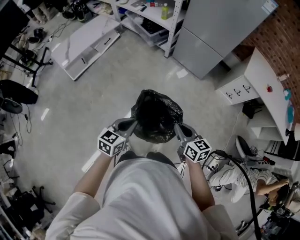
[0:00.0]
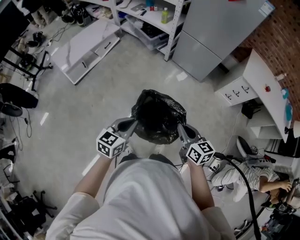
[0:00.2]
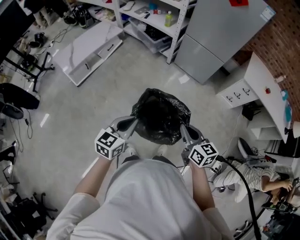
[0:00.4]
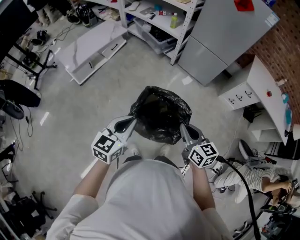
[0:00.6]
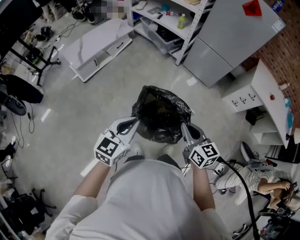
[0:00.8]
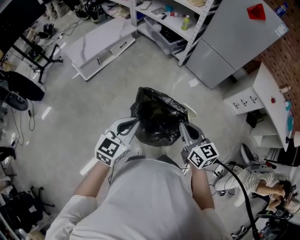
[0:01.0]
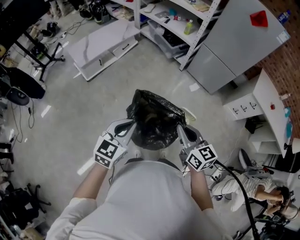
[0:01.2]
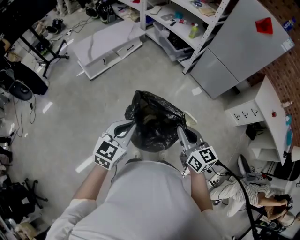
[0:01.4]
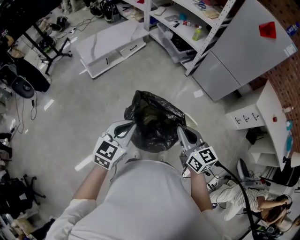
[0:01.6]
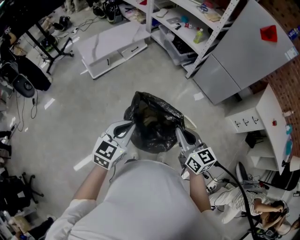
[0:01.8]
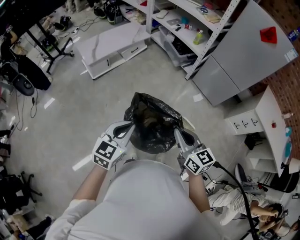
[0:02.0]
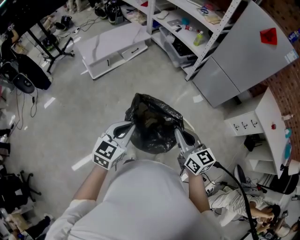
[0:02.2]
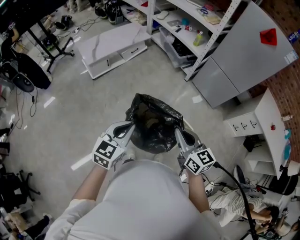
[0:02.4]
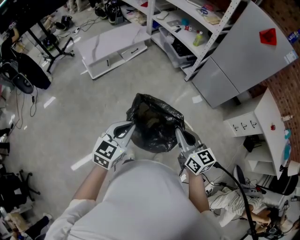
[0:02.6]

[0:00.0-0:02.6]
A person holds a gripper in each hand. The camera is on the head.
0:00.0 to 0:01.2: Both grippers travel together to the left and upward, roughly 25 cm.
0:01.2 to 0:02.6: The grippers stay close to where they were, moving slightly.

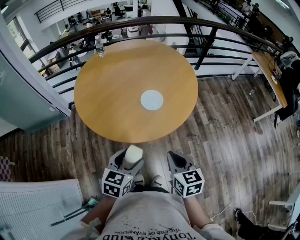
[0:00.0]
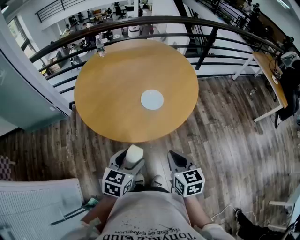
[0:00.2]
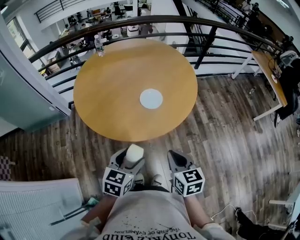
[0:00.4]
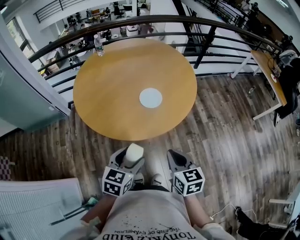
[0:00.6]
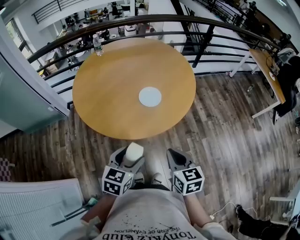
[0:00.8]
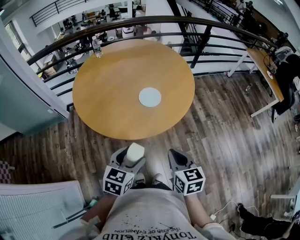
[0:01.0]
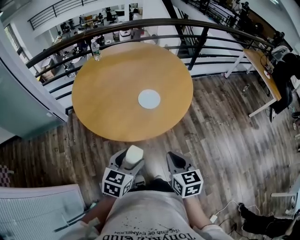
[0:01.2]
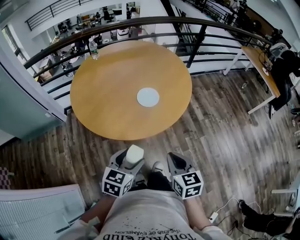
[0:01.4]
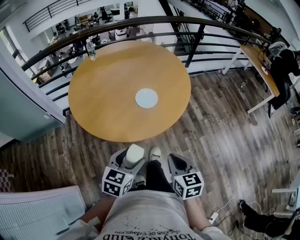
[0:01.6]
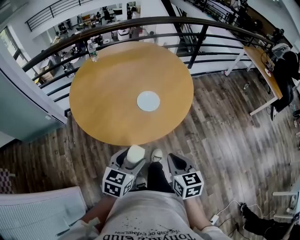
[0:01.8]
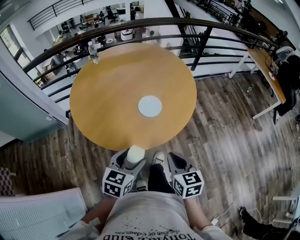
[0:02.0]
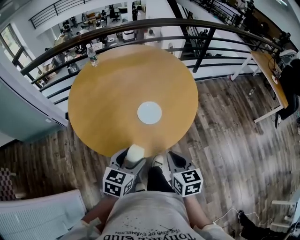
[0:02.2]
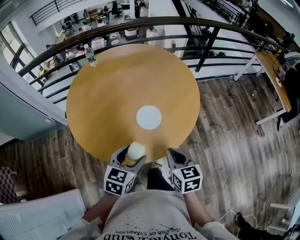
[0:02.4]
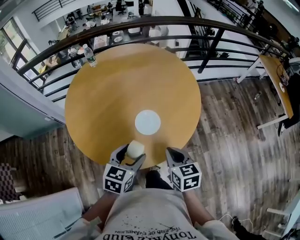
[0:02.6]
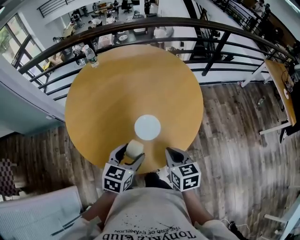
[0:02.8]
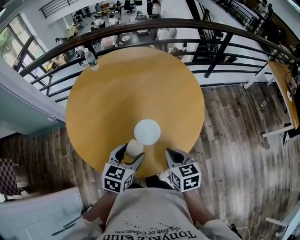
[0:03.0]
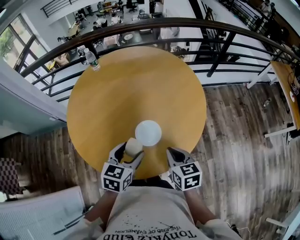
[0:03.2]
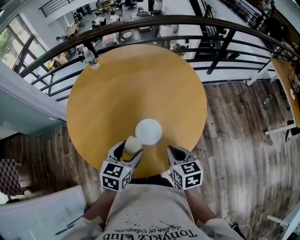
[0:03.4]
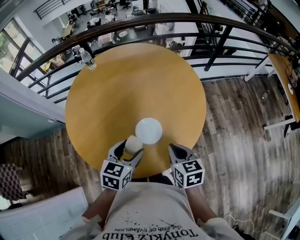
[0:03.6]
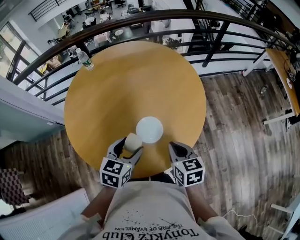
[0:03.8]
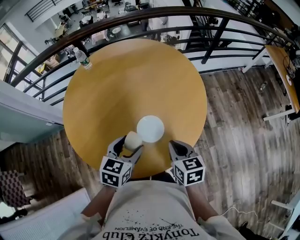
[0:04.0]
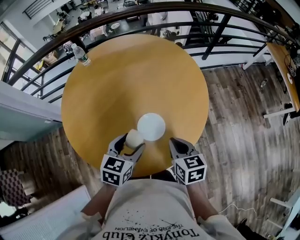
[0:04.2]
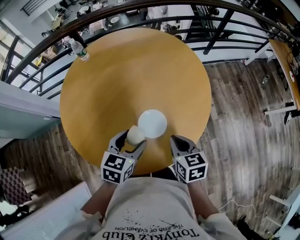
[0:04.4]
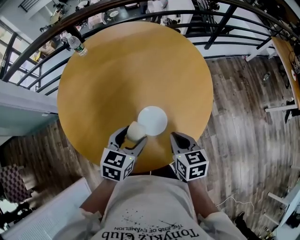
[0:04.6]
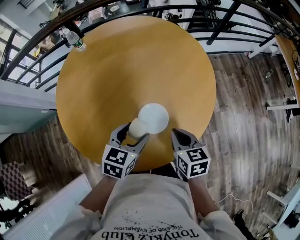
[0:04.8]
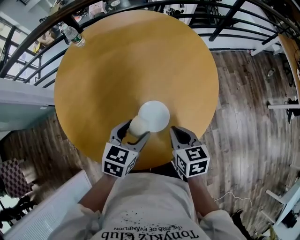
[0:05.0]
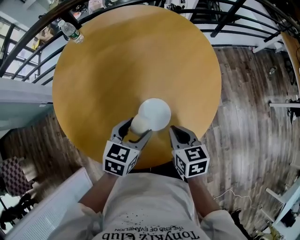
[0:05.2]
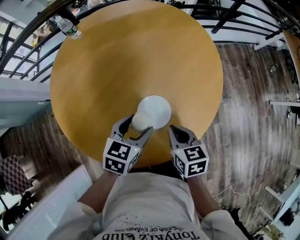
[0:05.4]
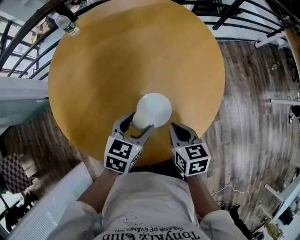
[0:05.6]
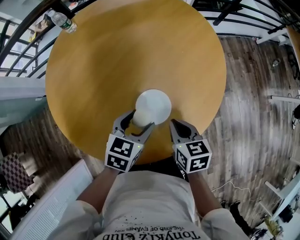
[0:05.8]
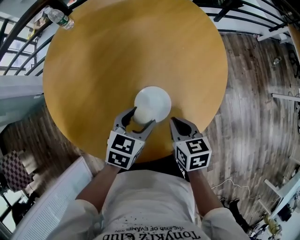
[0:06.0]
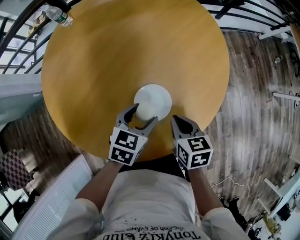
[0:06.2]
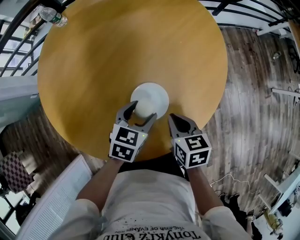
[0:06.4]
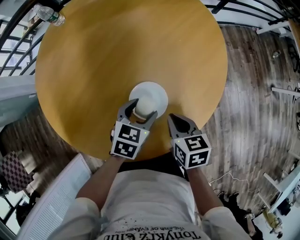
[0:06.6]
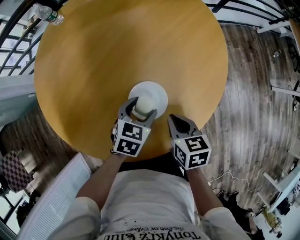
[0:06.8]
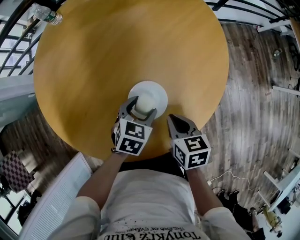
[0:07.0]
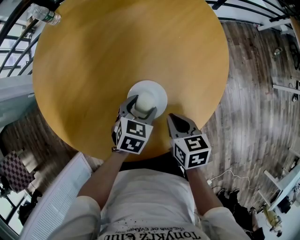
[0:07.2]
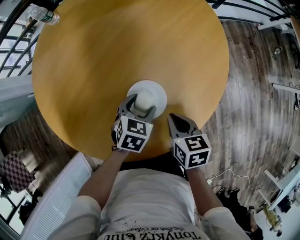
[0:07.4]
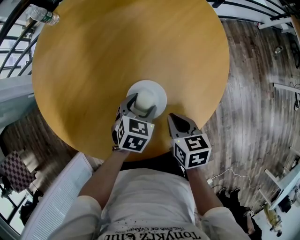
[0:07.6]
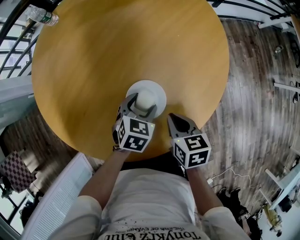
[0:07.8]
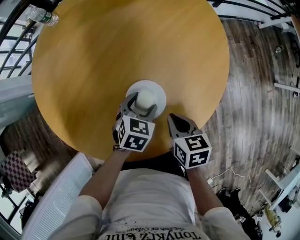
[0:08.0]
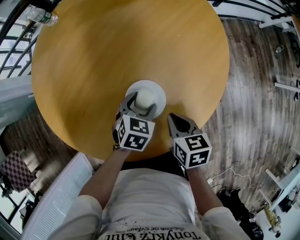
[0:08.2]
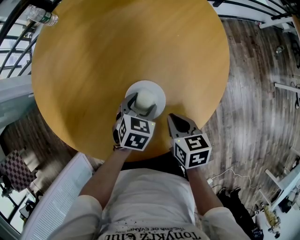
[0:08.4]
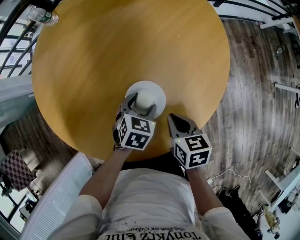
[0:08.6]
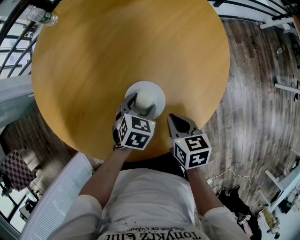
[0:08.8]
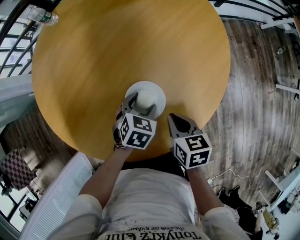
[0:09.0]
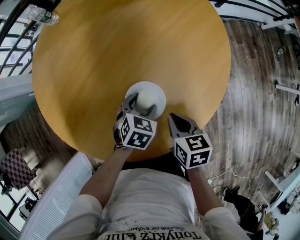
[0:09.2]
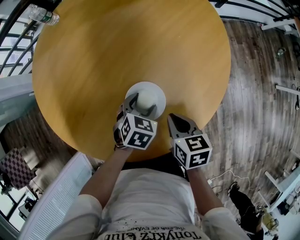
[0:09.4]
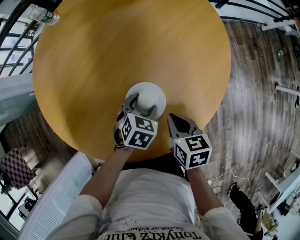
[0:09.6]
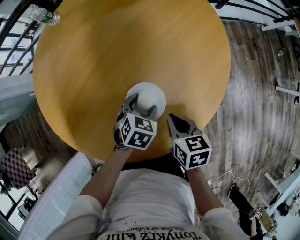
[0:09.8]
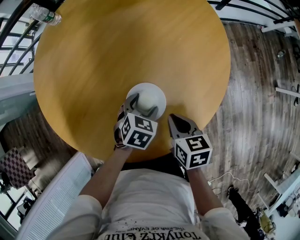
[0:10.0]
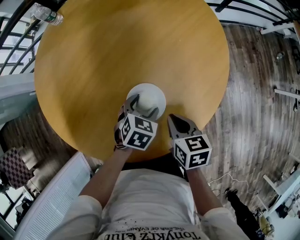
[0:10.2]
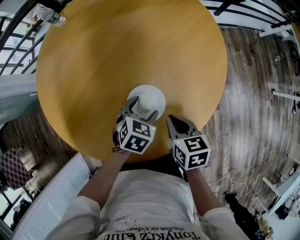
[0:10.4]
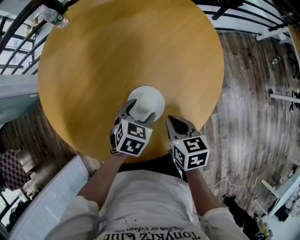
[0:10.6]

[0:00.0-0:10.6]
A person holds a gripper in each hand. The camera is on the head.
0:00.0 to 0:01.6: The grippers move only a little.
0:01.6 to 0:03.0: Both grippers travel together forward, roughly 25 cm.
0:03.0 to 0:04.6: Both grippers move forward, about 5 cm.
0:04.6 to 0:06.0: Both grippers travel together downward, roughly 10 cm.
0:06.0 to 0:07.6: The left gripper moves downward, some 10 cm.
0:07.6 to 0:09.0: The grippers move only a little.
0:09.0 to 0:10.6: The left gripper shifts by roughly 5 cm.

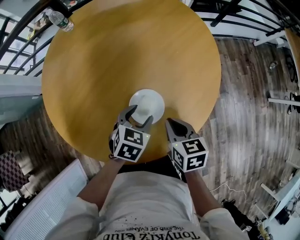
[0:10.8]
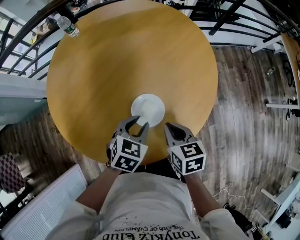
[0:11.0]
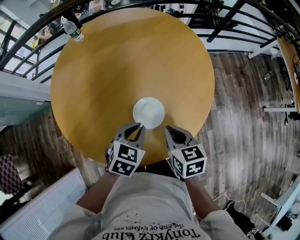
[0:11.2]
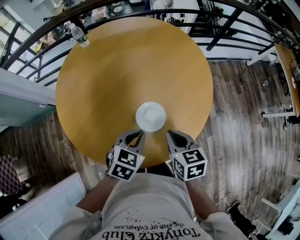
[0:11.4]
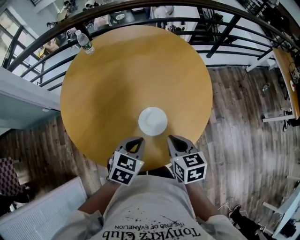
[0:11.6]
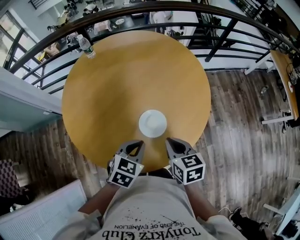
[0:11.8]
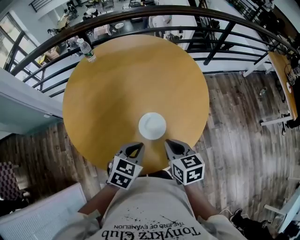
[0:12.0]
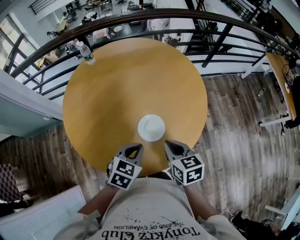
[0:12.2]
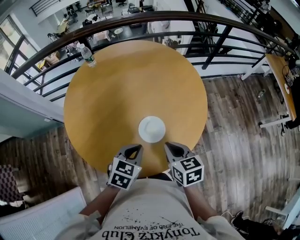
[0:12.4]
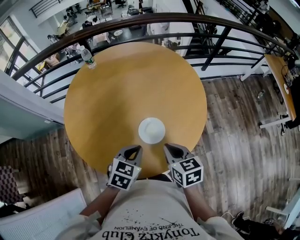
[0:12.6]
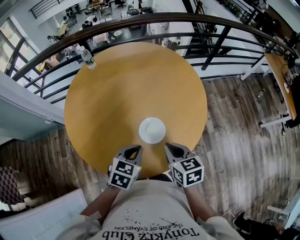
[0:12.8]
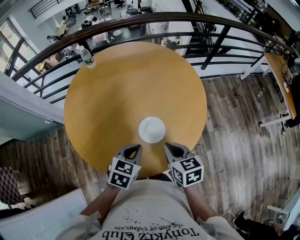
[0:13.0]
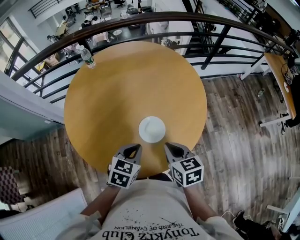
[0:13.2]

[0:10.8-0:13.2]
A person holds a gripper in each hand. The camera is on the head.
0:10.8 to 0:12.0: Both grippers travel together upward and backward, some 15 cm. The left gripper closes.
0:12.0 to 0:13.2: The grippers stay close to where they were, moving slightly.

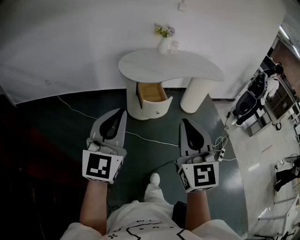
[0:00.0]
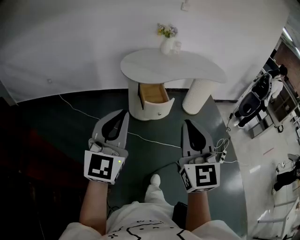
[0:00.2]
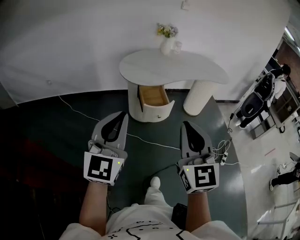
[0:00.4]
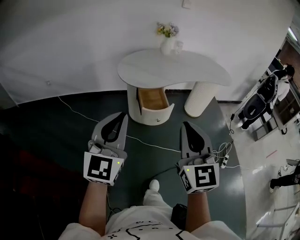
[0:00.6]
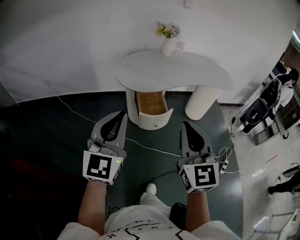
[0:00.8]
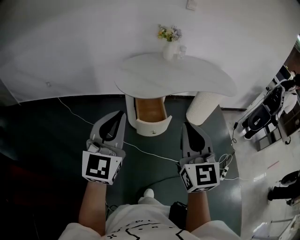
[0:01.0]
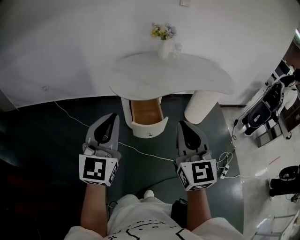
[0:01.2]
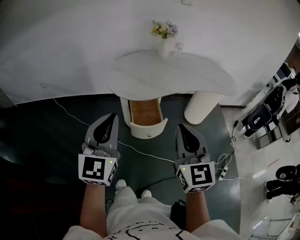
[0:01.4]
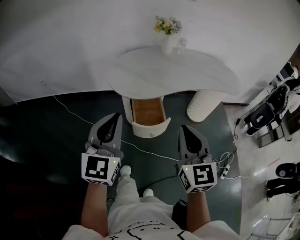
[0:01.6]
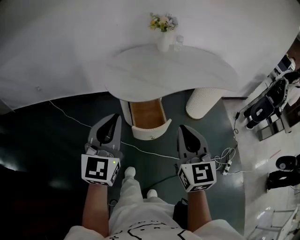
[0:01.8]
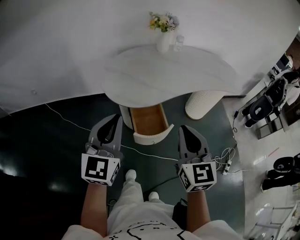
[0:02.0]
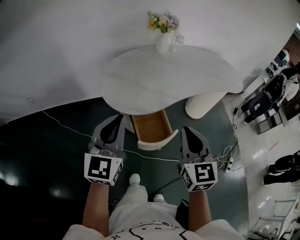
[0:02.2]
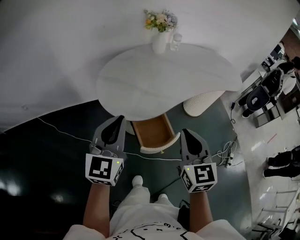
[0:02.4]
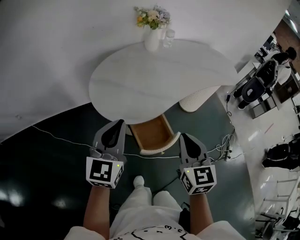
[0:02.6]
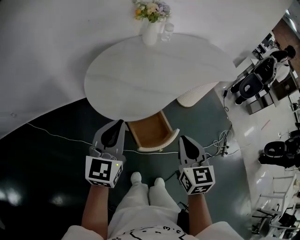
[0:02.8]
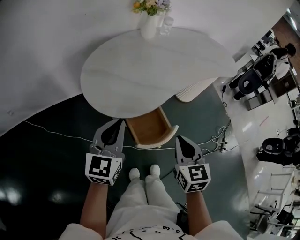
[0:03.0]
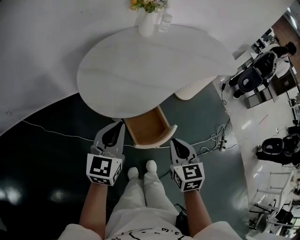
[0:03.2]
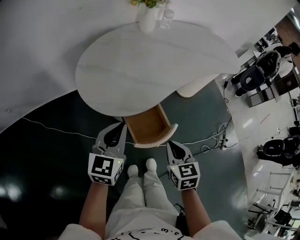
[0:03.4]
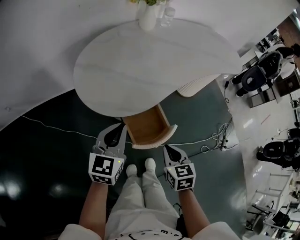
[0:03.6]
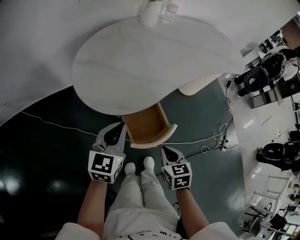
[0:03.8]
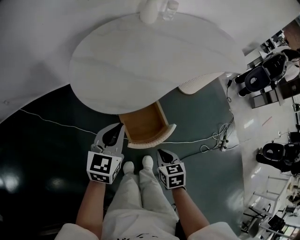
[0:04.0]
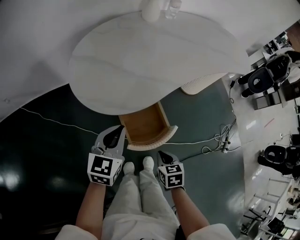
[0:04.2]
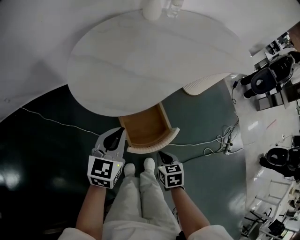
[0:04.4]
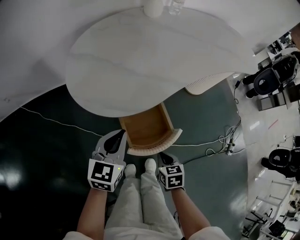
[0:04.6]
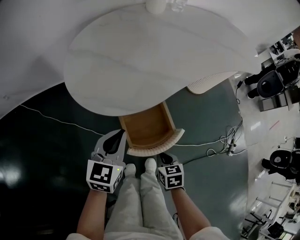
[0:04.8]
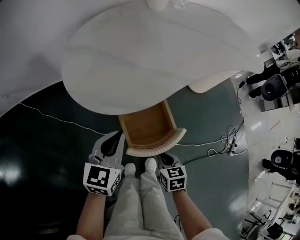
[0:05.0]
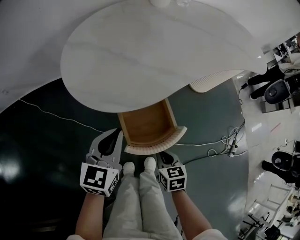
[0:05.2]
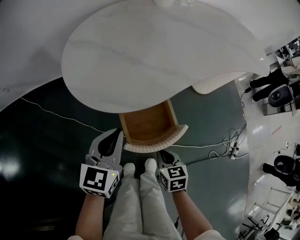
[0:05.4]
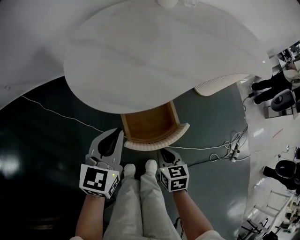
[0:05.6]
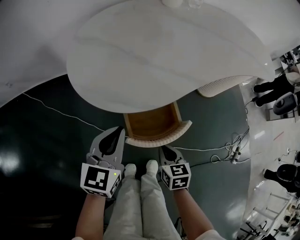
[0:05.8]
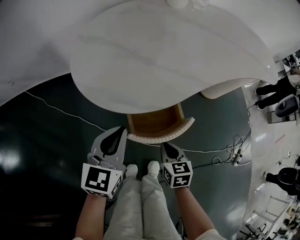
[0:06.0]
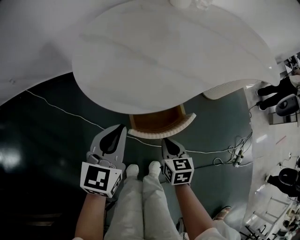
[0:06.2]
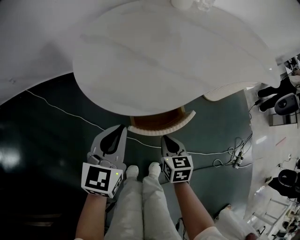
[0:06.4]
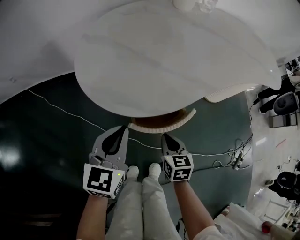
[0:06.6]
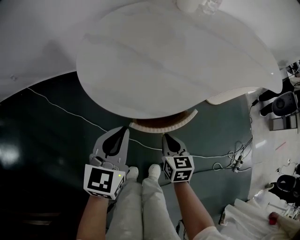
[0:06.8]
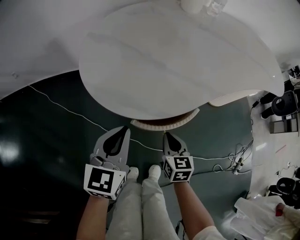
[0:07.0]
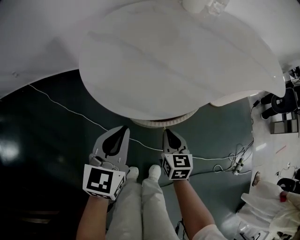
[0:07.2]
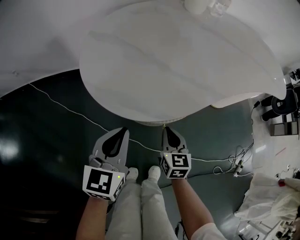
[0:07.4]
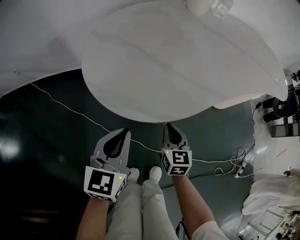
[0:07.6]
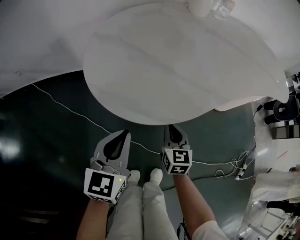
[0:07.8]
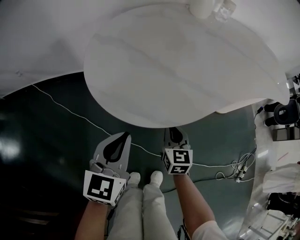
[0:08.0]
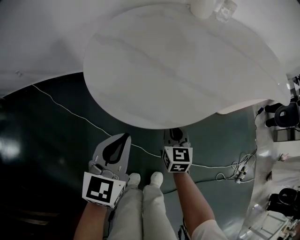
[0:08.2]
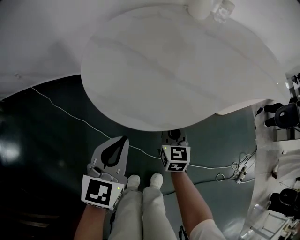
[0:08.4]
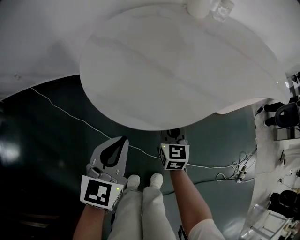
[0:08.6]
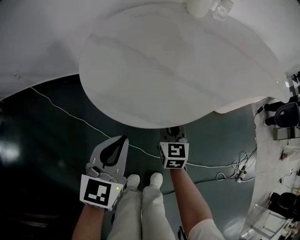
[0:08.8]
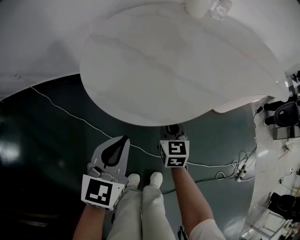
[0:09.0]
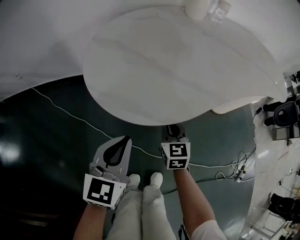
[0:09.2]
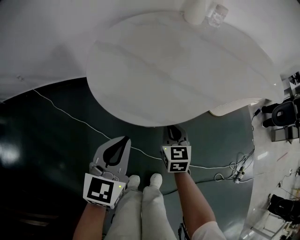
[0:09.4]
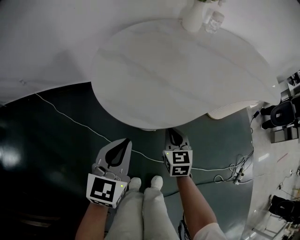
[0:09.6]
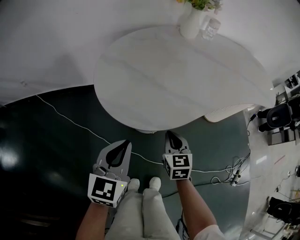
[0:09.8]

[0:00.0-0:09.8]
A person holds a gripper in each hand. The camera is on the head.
0:00.0 to 0:01.4: The right gripper is displaced forward and to the right by about 30 cm, while the left gripper is displaced forward by roughly 25 cm.
0:01.4 to 0:02.8: The left gripper shifts approximately 30 cm forward and downward, and swivels approximately 30 degrees. Meanwhile the right gripper moves forward, downward and to the left, some 25 cm, and rotates some 30 degrees.
0:02.8 to 0:04.2: The left gripper moves downward, roughly 15 cm; the right gripper heads downward, covering some 30 cm, and tilts its fingers approximately 30 degrees downward.
0:04.2 to 0:05.6: Both grippers move downward, approximately 5 cm.
0:05.6 to 0:07.0: The right gripper is displaced forward by approximately 10 cm.
0:07.0 to 0:08.4: The right gripper heads forward, covering some 10 cm.
0:08.4 to 0:09.8: Both grippers travel together upward, roughly 5 cm.
